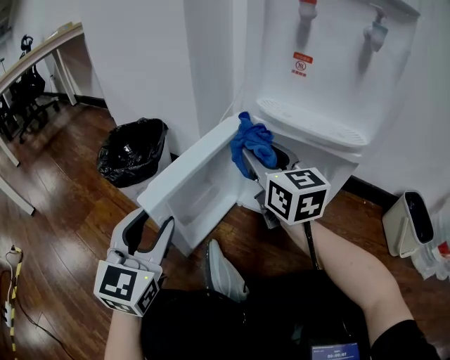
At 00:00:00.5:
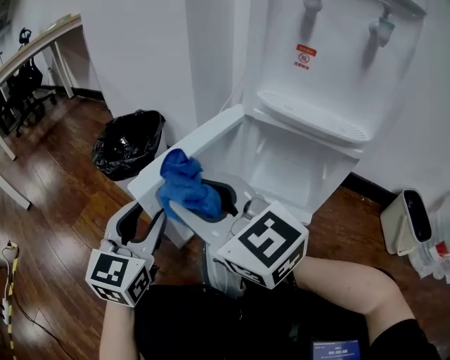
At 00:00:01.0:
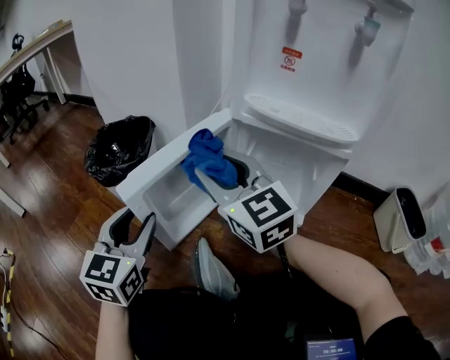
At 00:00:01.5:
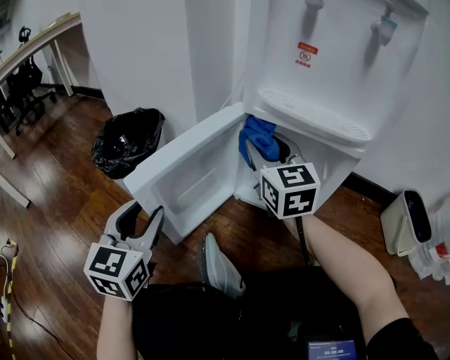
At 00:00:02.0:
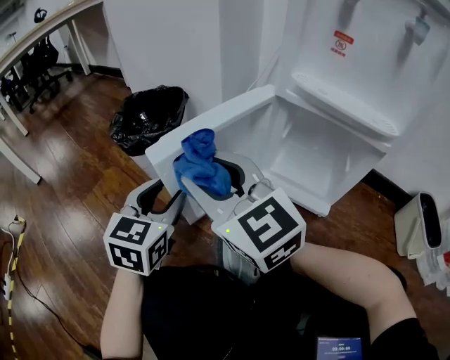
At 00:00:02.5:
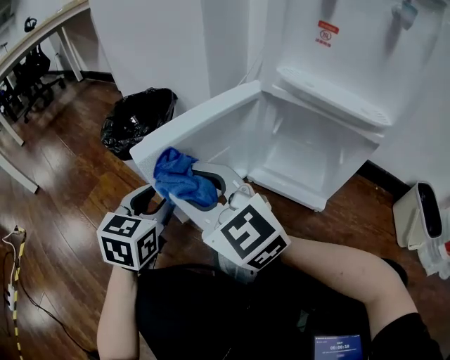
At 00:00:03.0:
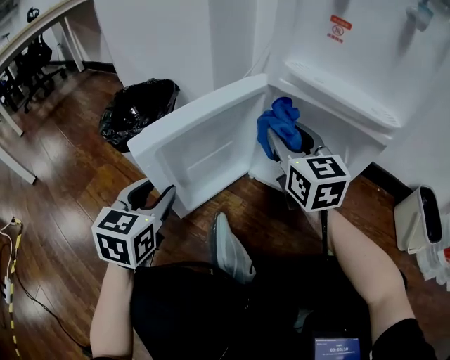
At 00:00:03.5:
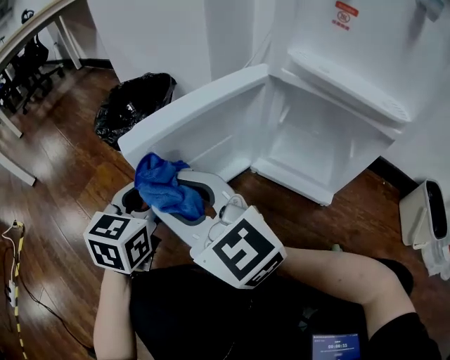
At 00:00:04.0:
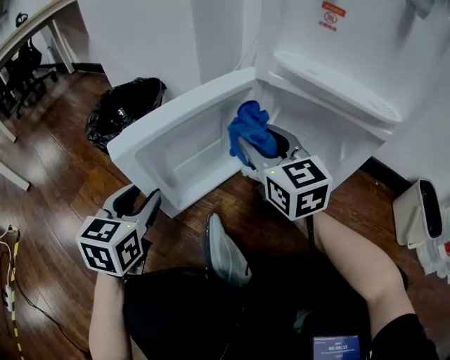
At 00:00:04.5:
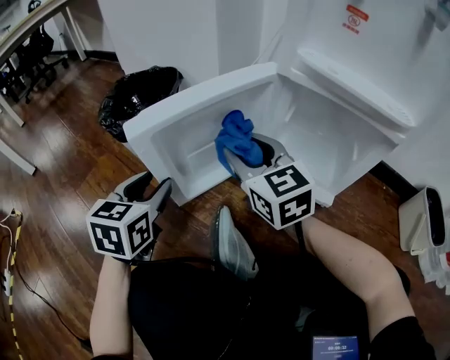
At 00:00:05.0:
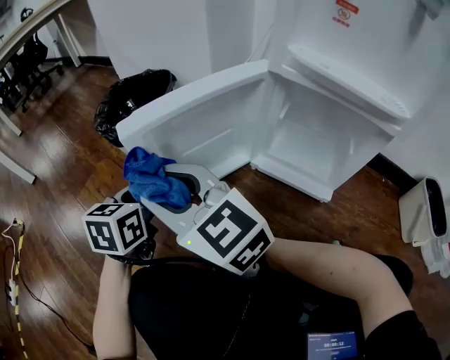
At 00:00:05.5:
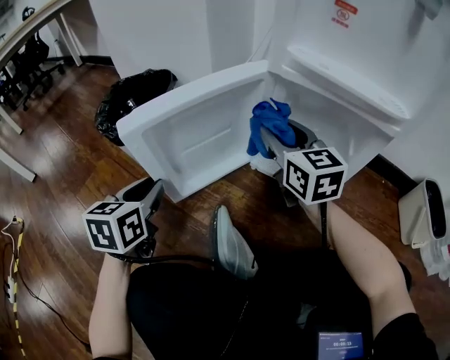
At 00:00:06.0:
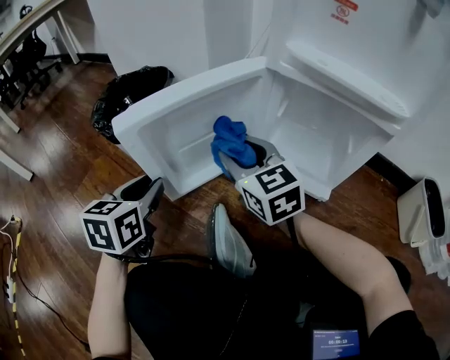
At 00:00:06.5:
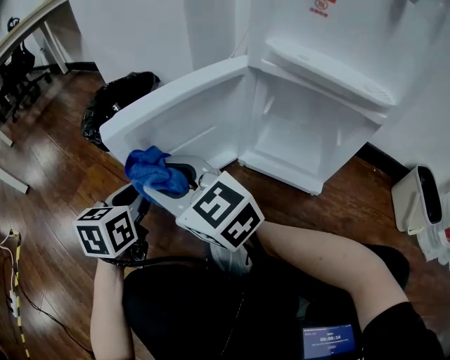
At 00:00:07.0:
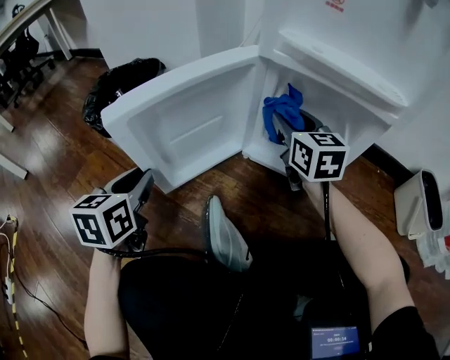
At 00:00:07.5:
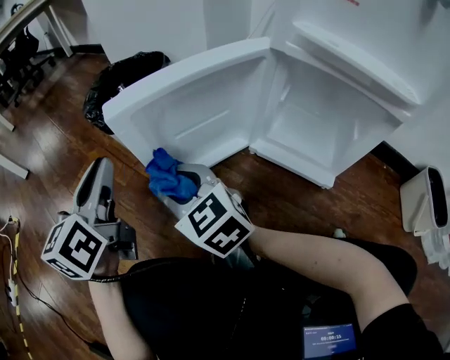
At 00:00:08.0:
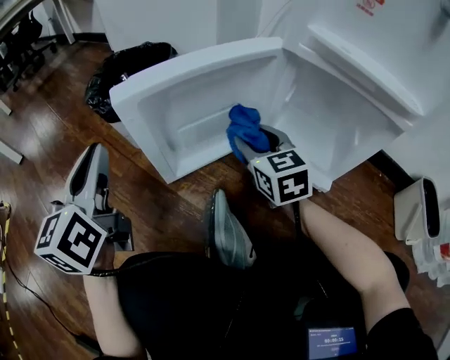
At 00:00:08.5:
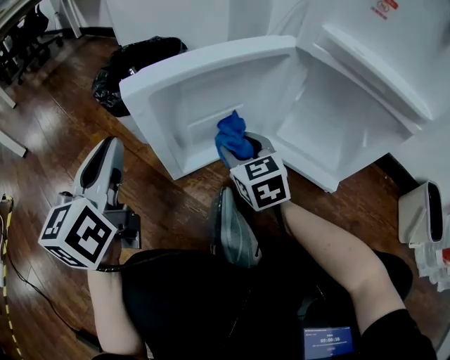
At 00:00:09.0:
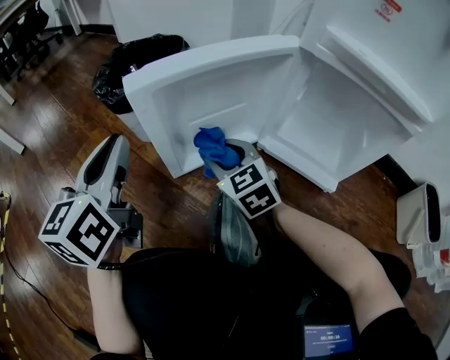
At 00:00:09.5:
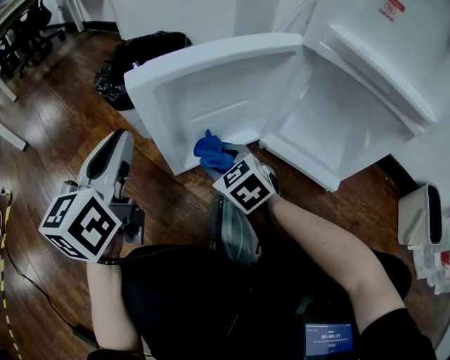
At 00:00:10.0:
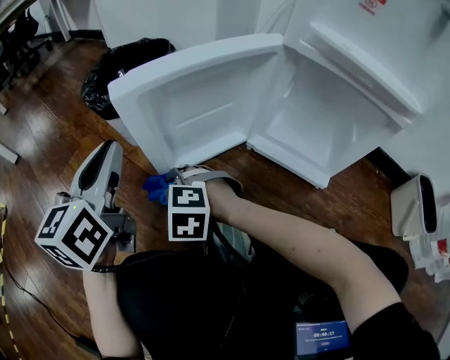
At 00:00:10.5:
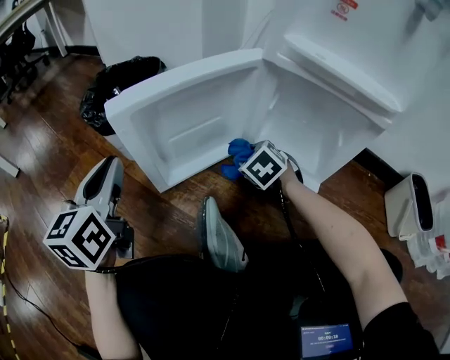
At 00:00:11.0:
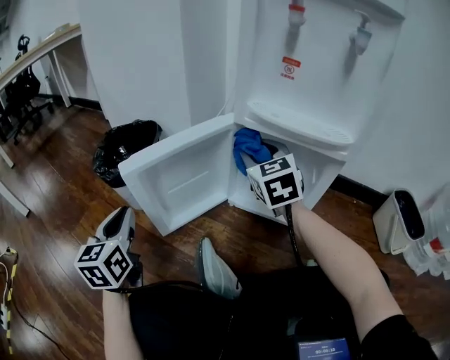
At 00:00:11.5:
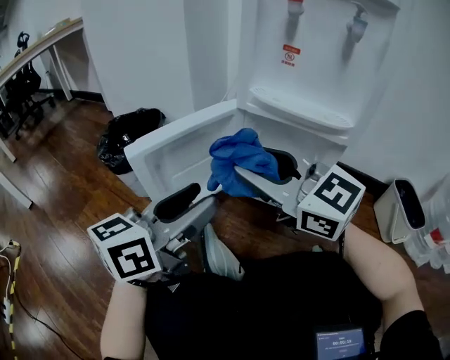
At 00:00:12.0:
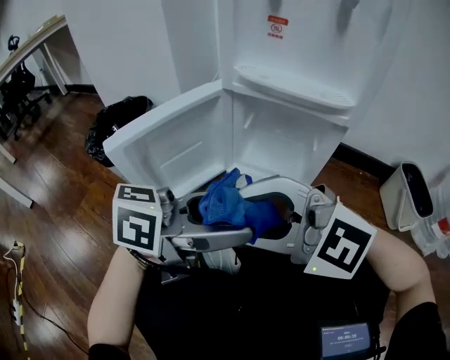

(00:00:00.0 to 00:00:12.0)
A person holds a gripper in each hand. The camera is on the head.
00:00:00.0 - 00:00:02.0: The right gripper moves left and right over about 20 cm, changing direction 2 times, and rotates roughly 30 degrees. The left gripper shifts some 5 cm downward.
00:00:02.0 - 00:00:04.0: The right gripper goes left and right, about 25 cm each way, reversing 2 times, and swivels some 20 degrees.
00:00:04.0 - 00:00:06.0: The right gripper goes left and right, approximately 25 cm each way, reversing 2 times.
00:00:06.0 - 00:00:08.0: The left gripper goes some 10 cm upward, and changes its angle by about 30 degrees.
00:00:08.0 - 00:00:10.0: The right gripper heads to the left and downward, covering some 25 cm, and angles its fingers downward, by roughly 30 degrees.
00:00:10.0 - 00:00:12.0: The left gripper moves approximately 30 cm, changes its angle by approximately 80 degrees, and opens. Meanwhile the right gripper is displaced upward by about 25 cm, and tips its fingers upward by about 40 degrees.

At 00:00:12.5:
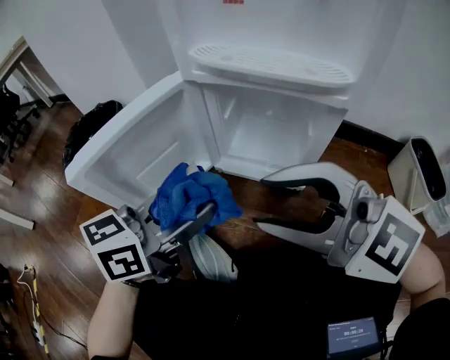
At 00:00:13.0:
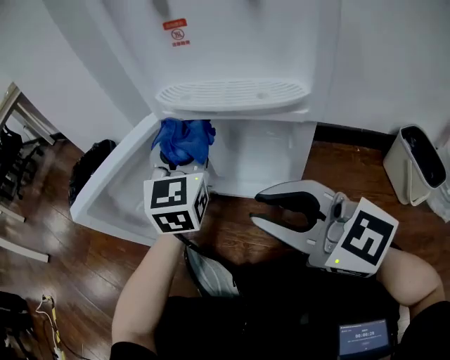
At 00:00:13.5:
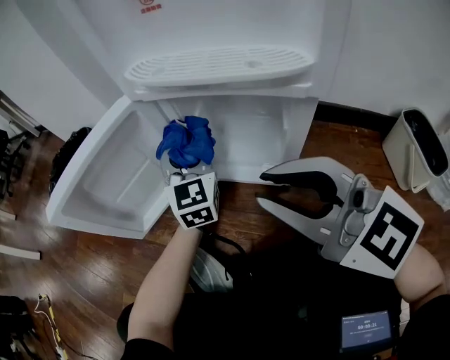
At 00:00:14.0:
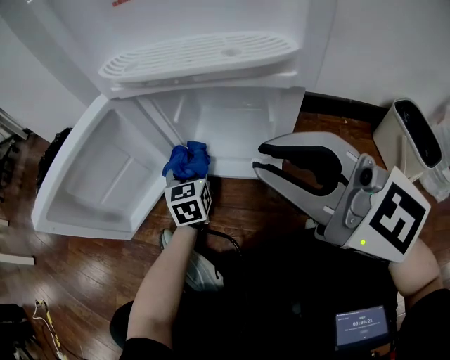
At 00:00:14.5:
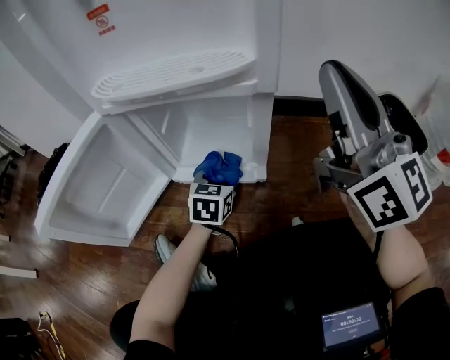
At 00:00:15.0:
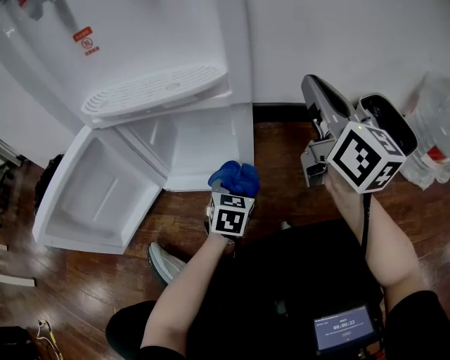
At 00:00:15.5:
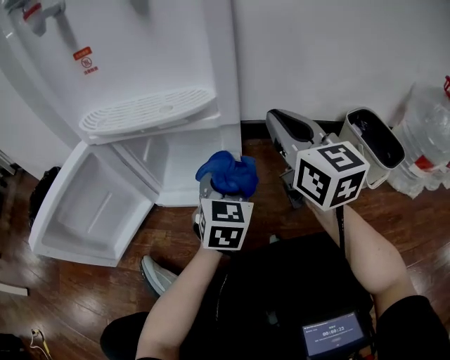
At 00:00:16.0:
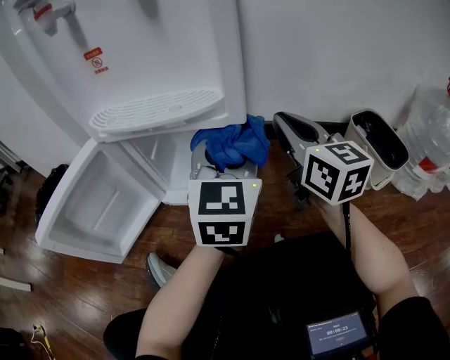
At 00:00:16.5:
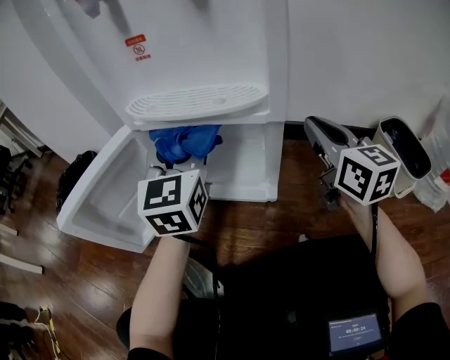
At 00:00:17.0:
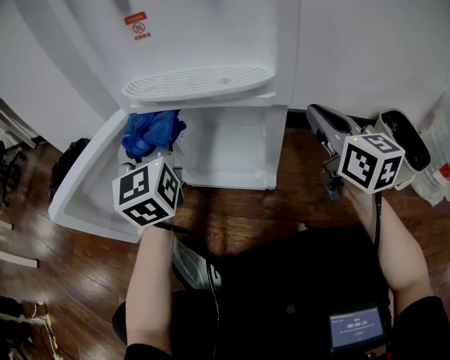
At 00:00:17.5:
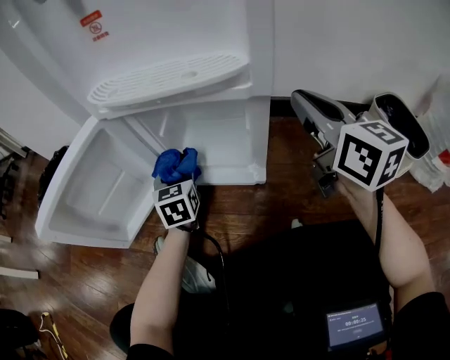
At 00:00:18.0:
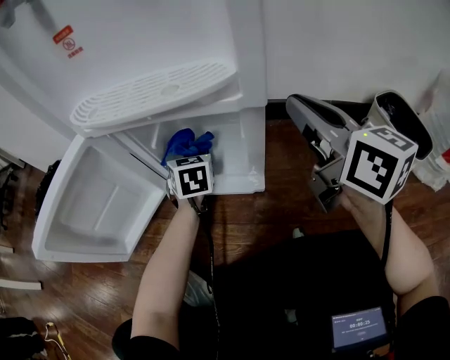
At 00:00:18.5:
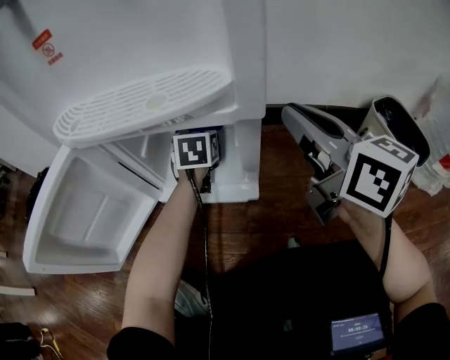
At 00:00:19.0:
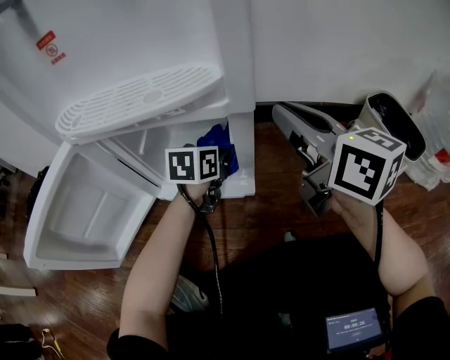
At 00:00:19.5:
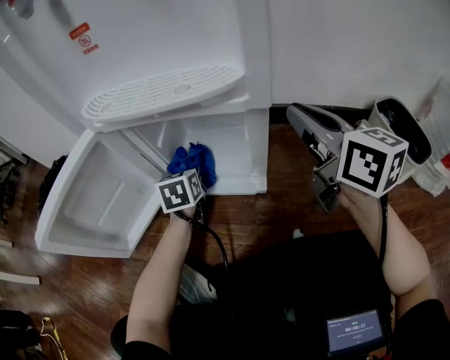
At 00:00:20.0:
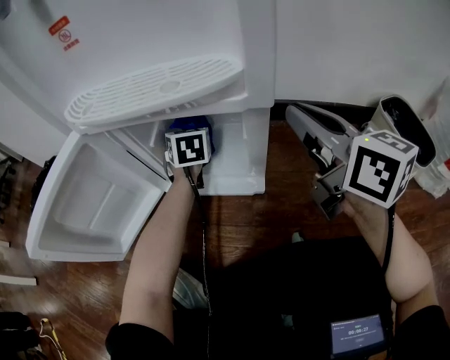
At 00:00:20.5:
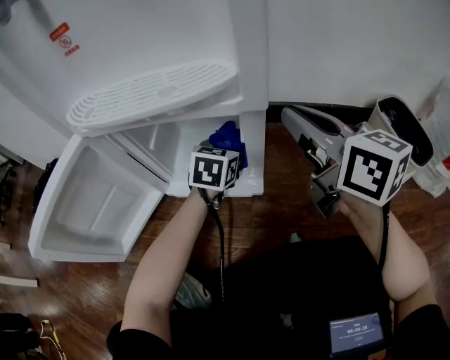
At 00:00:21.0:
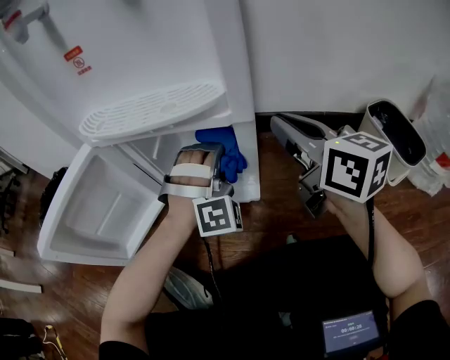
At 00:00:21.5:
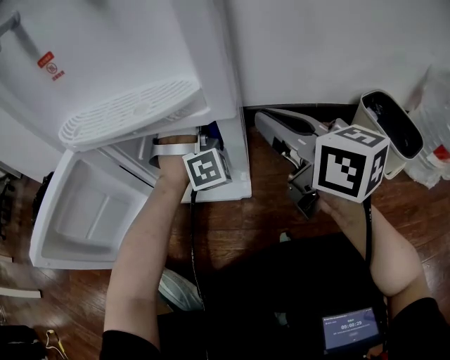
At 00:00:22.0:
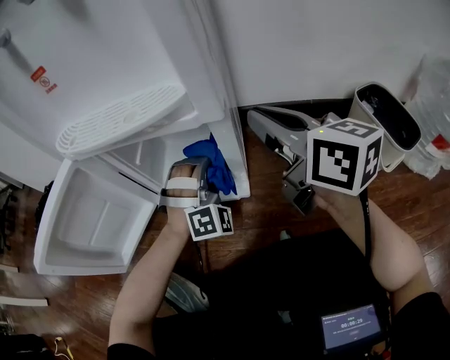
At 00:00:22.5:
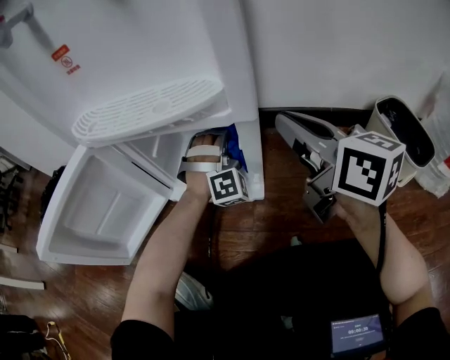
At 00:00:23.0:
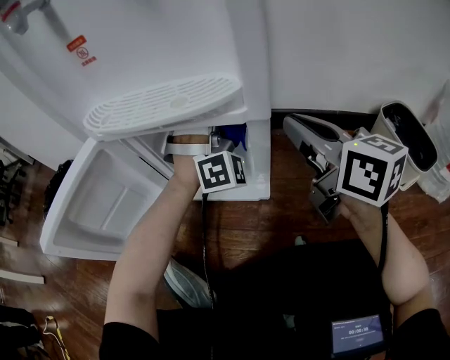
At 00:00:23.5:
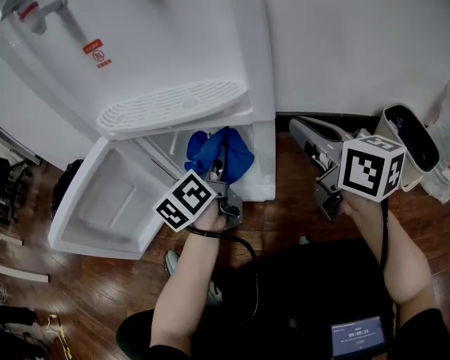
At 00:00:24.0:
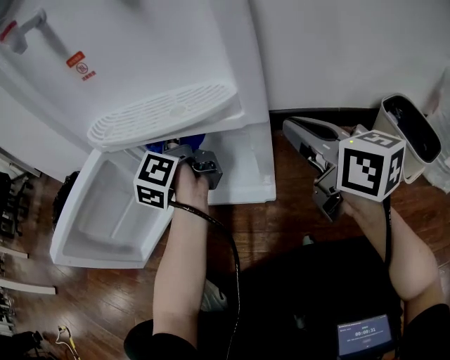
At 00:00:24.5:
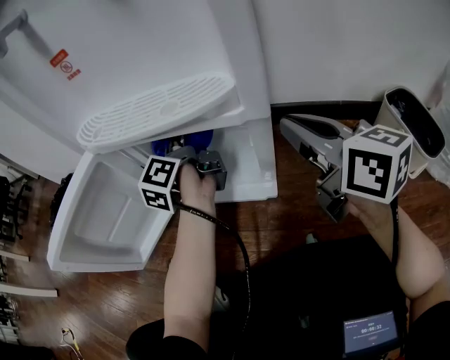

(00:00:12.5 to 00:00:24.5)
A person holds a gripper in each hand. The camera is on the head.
00:00:12.5 - 00:00:14.5: The left gripper travels downward by about 25 cm, and swivels roughly 30 degrees. The right gripper shifts by roughly 25 cm, points its fingers approximately 40 degrees further upward, and closes up.
00:00:14.5 - 00:00:16.5: The right gripper travels downward and forward by about 15 cm, and rotates about 30 degrees. The left gripper is displaced upward by approximately 30 cm, and angles its fingers upward, by roughly 30 degrees.
00:00:16.5 - 00:00:18.5: The left gripper travels downward and forward by some 30 cm, and tilts its fingers some 30 degrees downward.
00:00:18.5 - 00:00:20.5: The left gripper moves left and right over approximately 15 cm, changing direction 2 times.
00:00:20.5 - 00:00:22.5: The left gripper travels upward and back again, approximately 10 cm each way, and rotates around the line of its fingers by approximately 80 degrees, clockwise from behind.
00:00:22.5 - 00:00:24.5: The left gripper moves to the left and upward, about 20 cm, and twists about 150 degrees counterclockwise, seen from behind.

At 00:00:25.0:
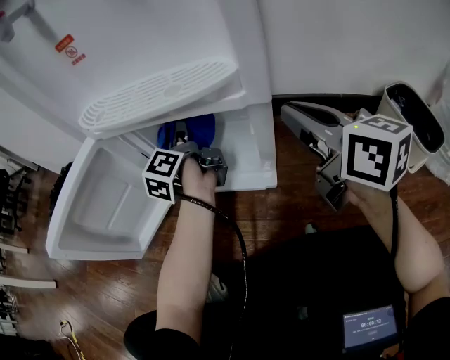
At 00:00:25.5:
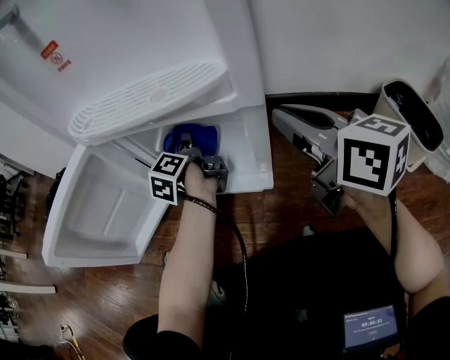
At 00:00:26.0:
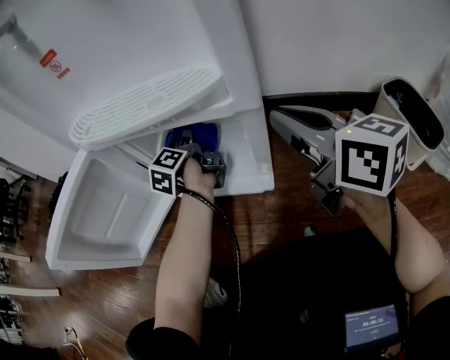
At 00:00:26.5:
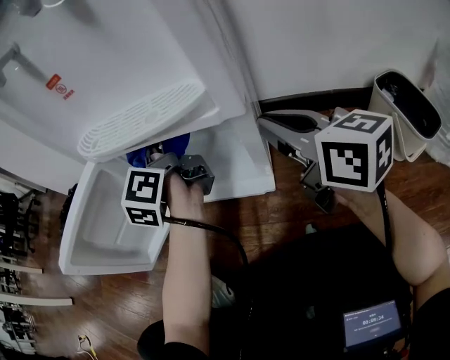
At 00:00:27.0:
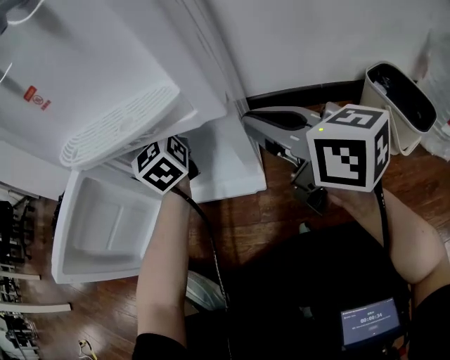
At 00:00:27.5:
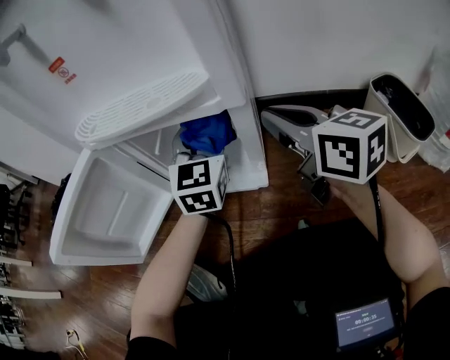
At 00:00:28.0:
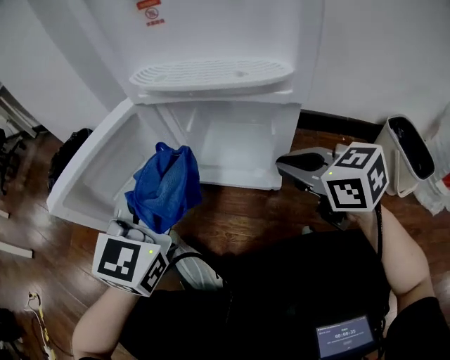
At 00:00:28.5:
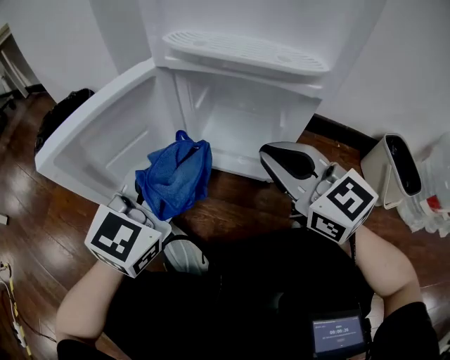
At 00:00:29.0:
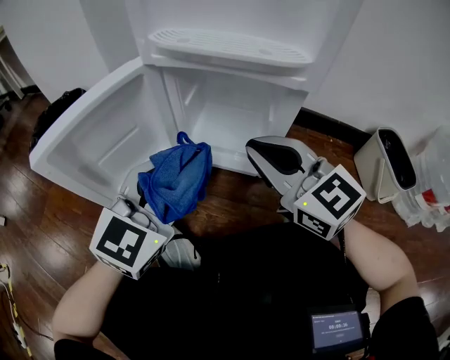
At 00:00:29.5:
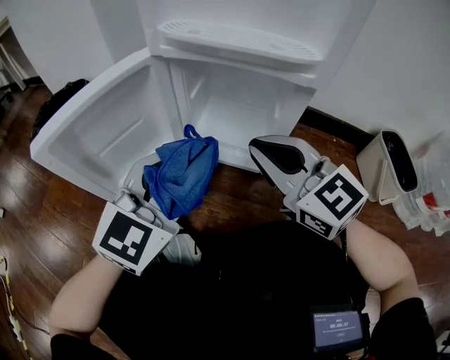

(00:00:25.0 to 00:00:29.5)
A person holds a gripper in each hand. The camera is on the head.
00:00:25.0 - 00:00:27.0: The left gripper heads upward and to the right, covering about 10 cm, and rotates around the line of its fingers by about 70 degrees, clockwise from behind.
00:00:27.0 - 00:00:29.5: The left gripper is displaced backward by some 30 cm, and rotates some 40 degrees; the right gripper shifts about 15 cm to the left and backward, and turns by approximately 40 degrees.
